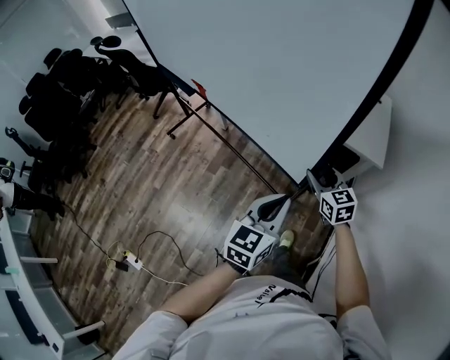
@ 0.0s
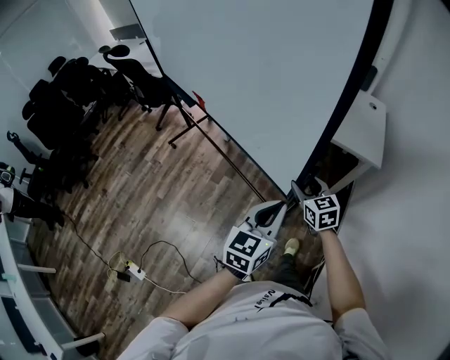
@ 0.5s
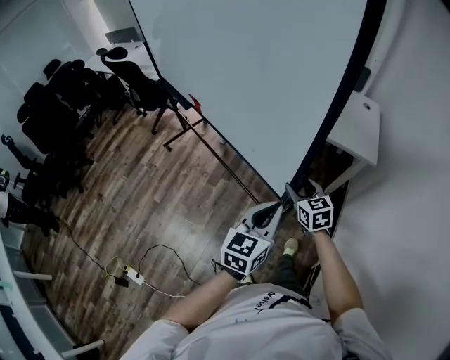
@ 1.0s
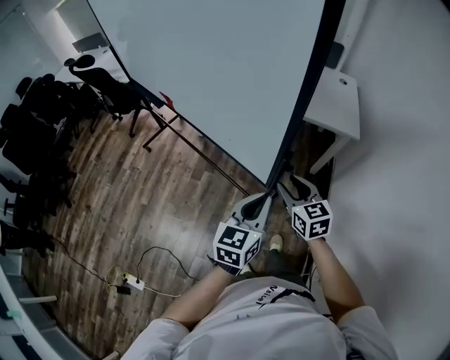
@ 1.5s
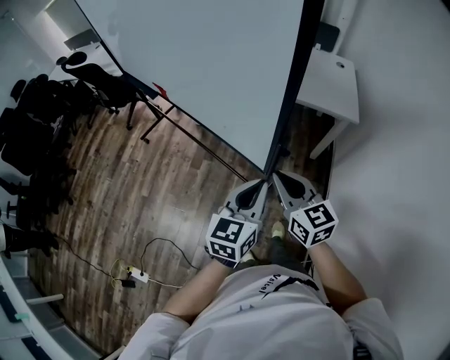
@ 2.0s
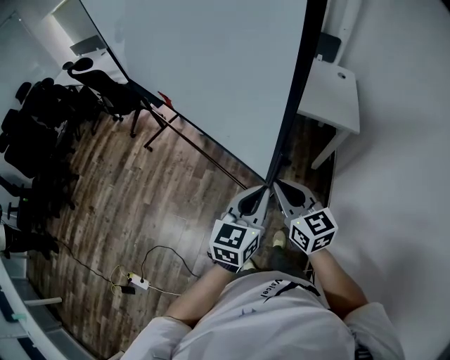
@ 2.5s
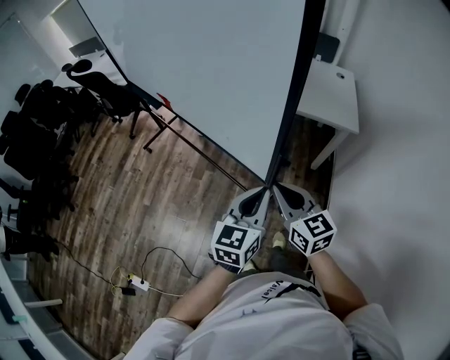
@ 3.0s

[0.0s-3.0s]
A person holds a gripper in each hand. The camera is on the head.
0.0s to 1.5s: The right gripper travels backward and to the left by roughly 20 cm. Meanwhile the left gripper is displaced backward and to the left by roughly 10 cm.
1.5s to 3.0s: The right gripper moves upward, some 5 cm, and closes up.

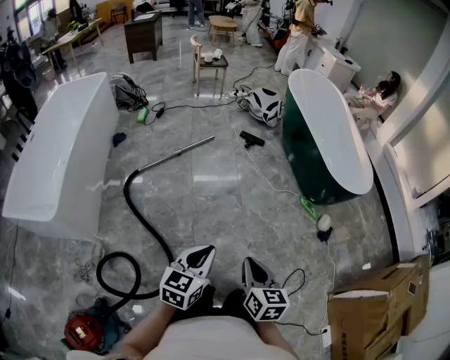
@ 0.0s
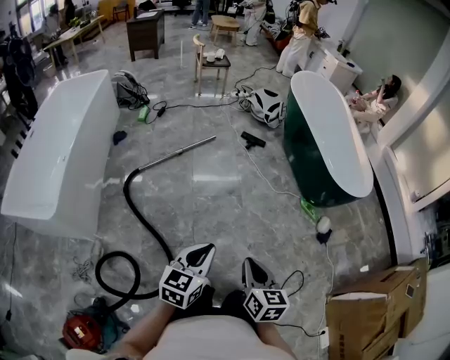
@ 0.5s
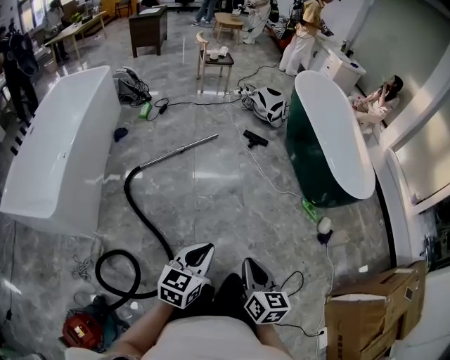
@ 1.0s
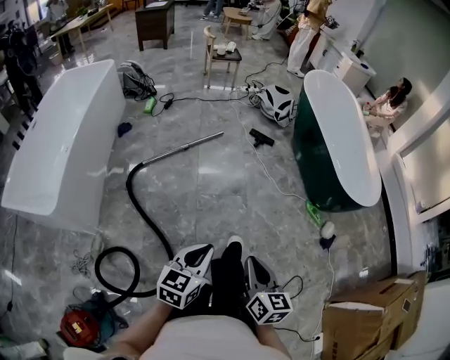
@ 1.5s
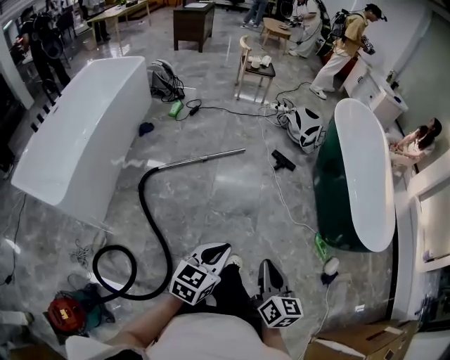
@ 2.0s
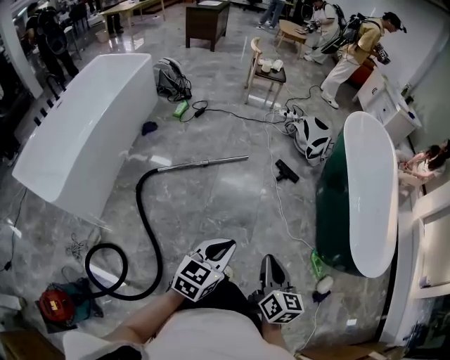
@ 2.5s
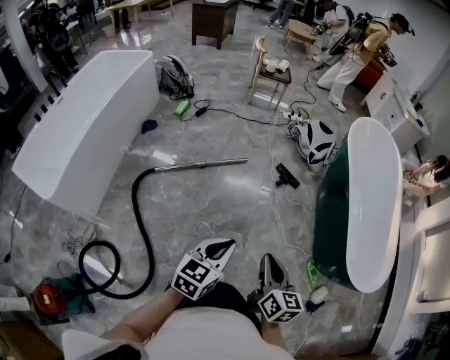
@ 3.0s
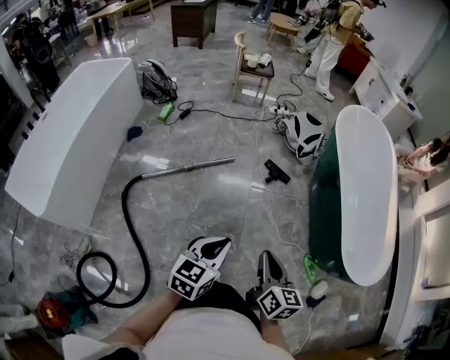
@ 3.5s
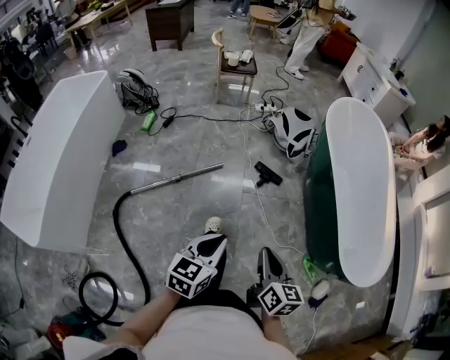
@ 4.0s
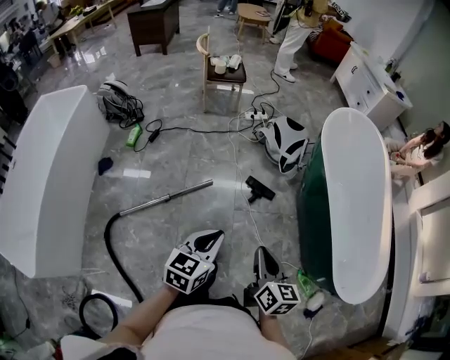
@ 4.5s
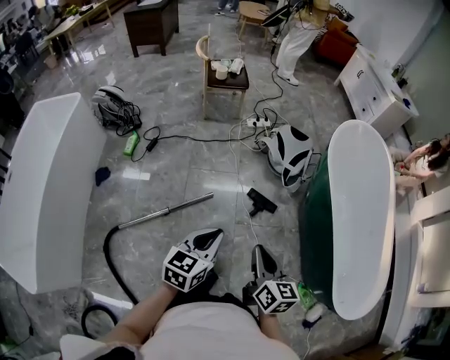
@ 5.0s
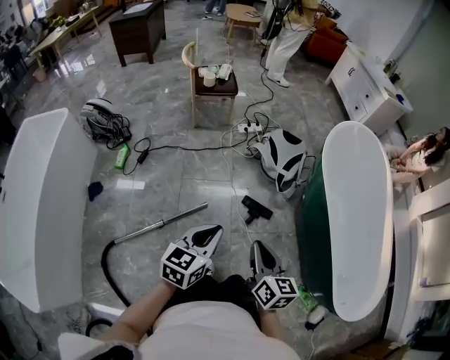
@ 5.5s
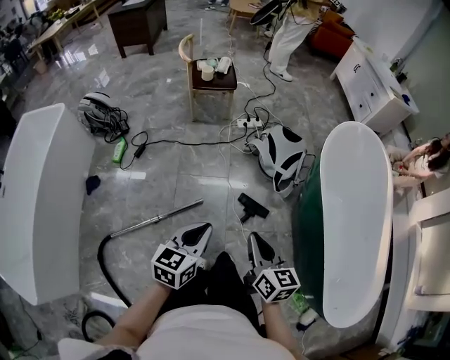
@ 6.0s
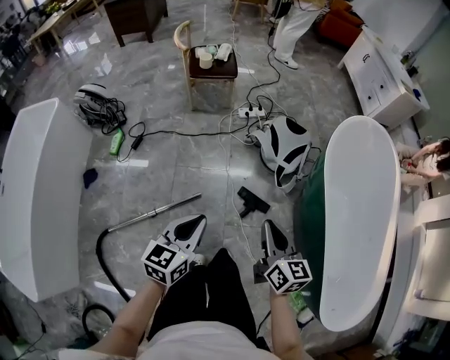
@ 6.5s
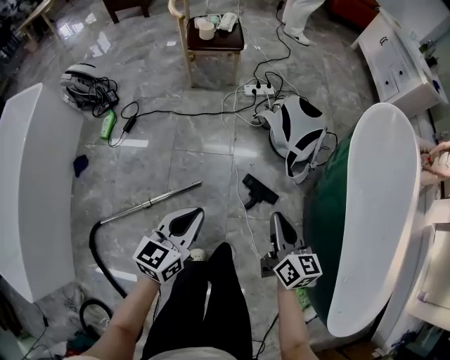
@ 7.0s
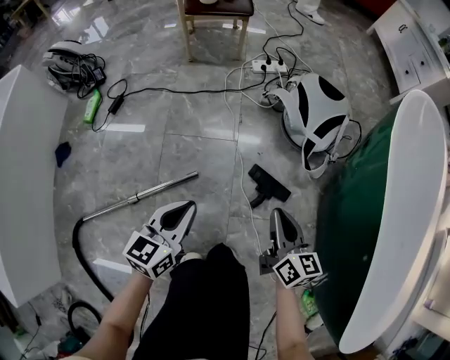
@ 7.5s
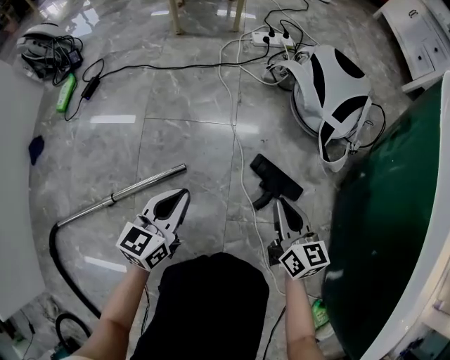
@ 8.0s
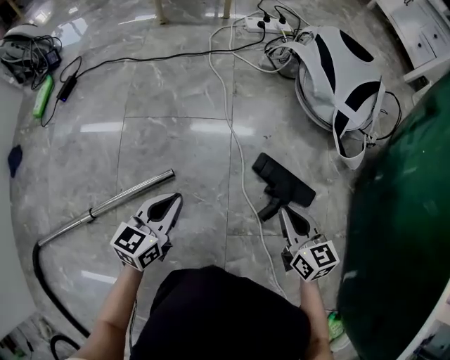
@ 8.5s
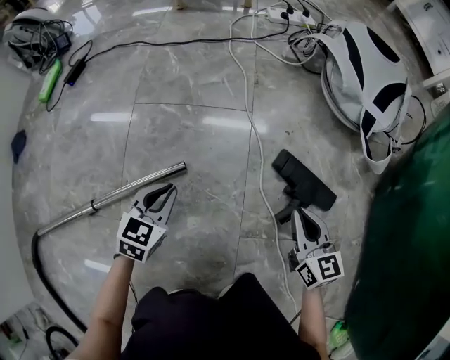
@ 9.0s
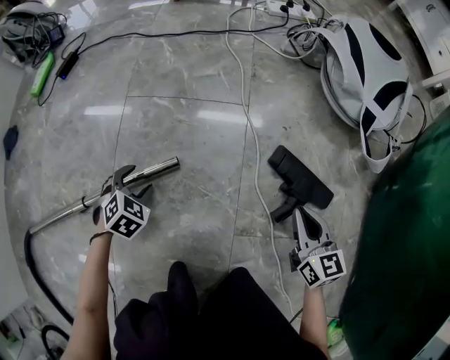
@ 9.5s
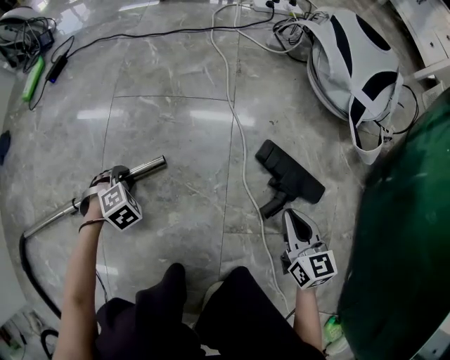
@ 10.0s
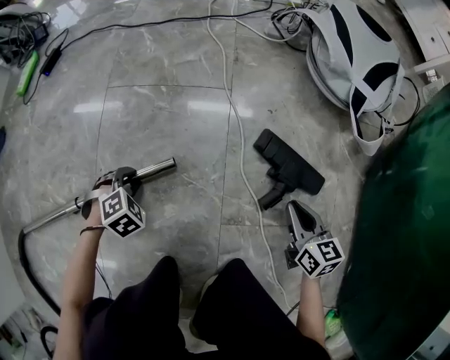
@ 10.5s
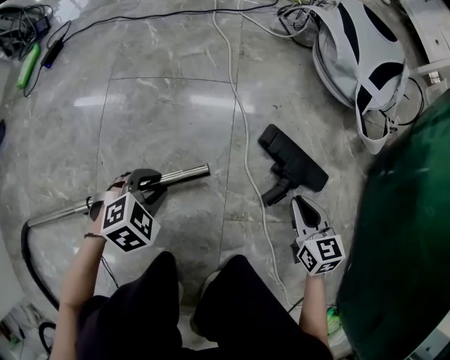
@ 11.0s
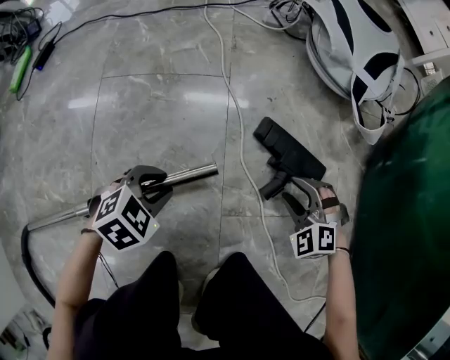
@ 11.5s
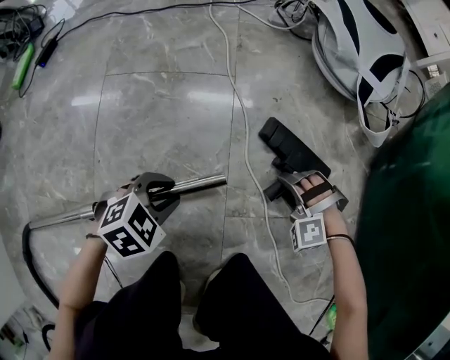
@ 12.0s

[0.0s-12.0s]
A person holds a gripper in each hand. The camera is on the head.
0.0s to 2.0s: The grippers both shift forward by approximately 20 cm.
2.0s to 4.0s: The two grippers go approximately 35 cm forward.
4.0s to 6.0s: The pair of grippers is taken forward, about 40 cm.
6.0s to 8.0s: The two grippers go about 50 cm downward.
8.0s to 10.0s: The right gripper is displaced downward by approximately 20 cm, while the left gripper goes roughly 35 cm downward, tips its fingers downward by about 60 degrees, and opens up.
10.0s to 12.0s: The right gripper moves downward, approximately 10 cm, rolls counterclockwise, seen from behind, by approximately 100 degrees, and opens its fingers, while the left gripper ends up approximately 20 cm from where it was, and swivels about 40 degrees.

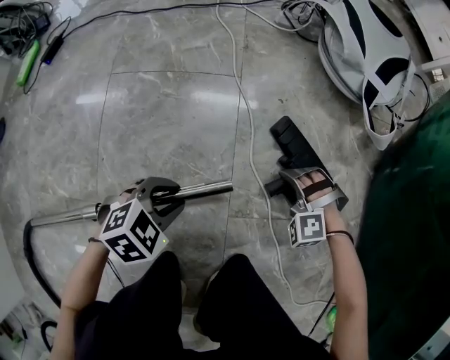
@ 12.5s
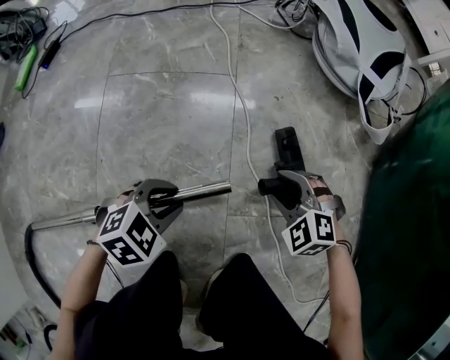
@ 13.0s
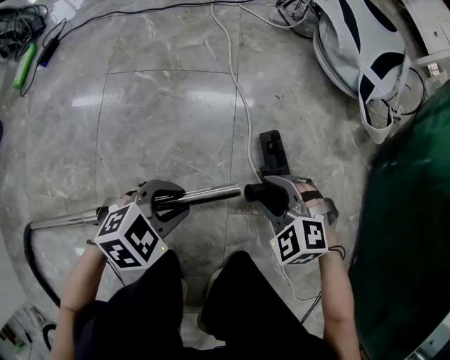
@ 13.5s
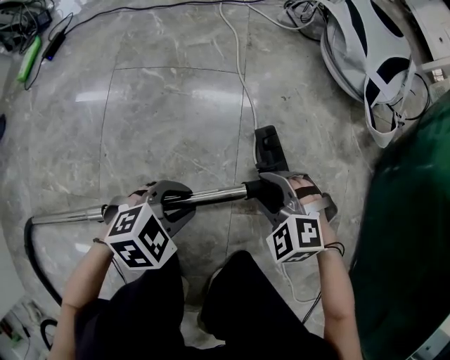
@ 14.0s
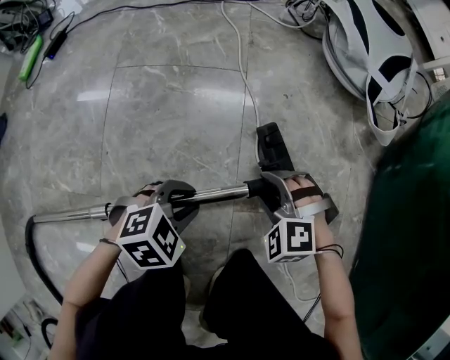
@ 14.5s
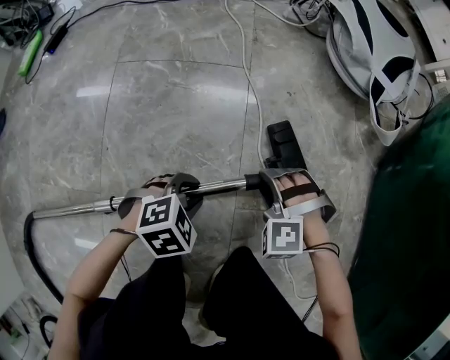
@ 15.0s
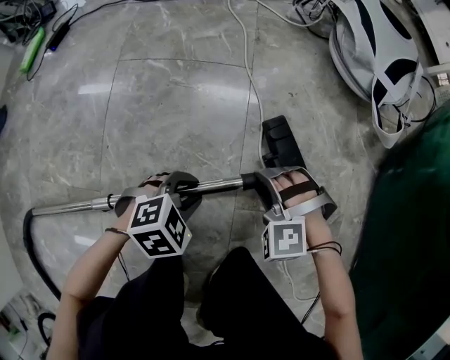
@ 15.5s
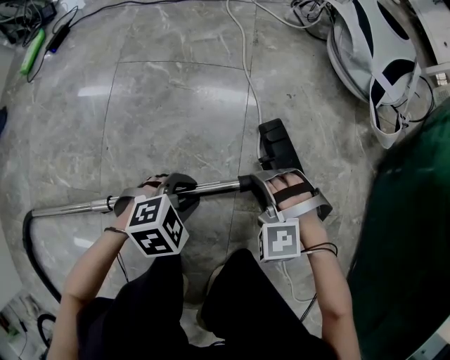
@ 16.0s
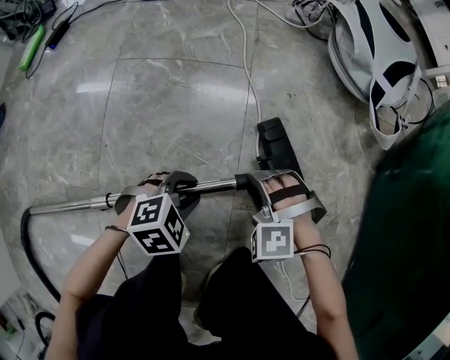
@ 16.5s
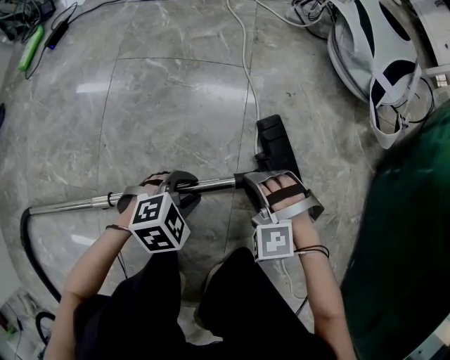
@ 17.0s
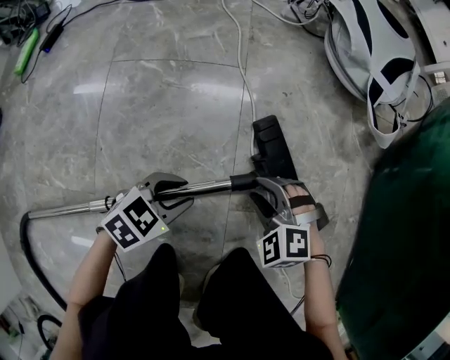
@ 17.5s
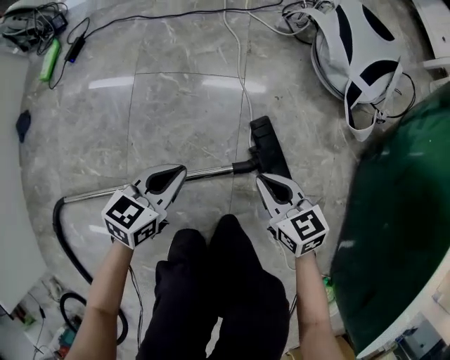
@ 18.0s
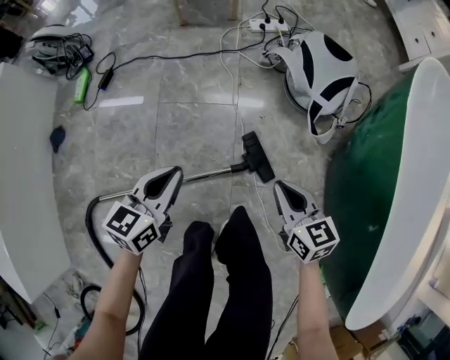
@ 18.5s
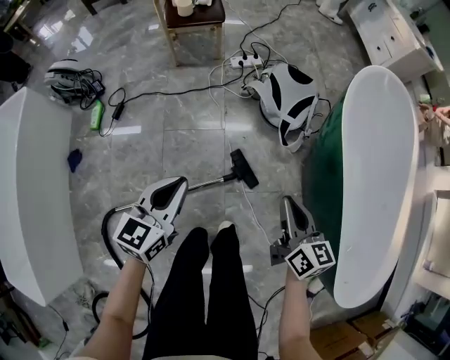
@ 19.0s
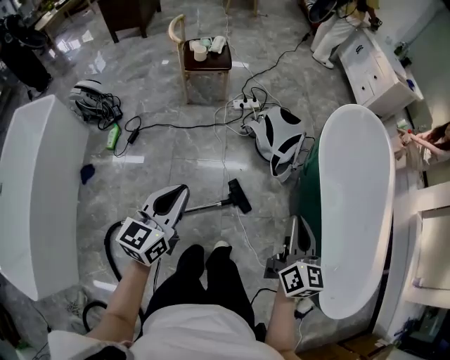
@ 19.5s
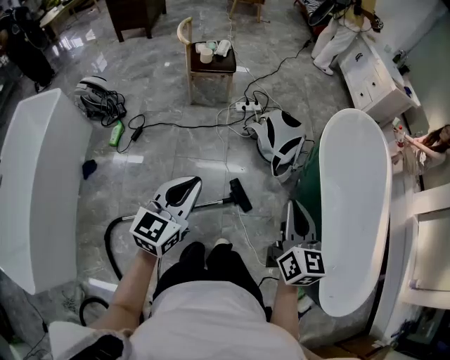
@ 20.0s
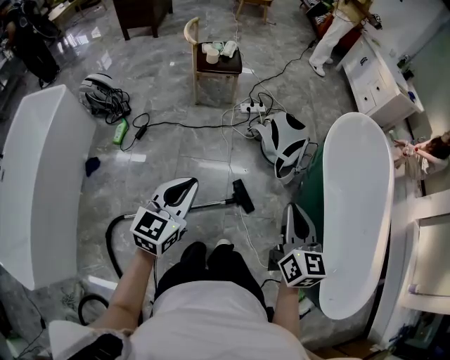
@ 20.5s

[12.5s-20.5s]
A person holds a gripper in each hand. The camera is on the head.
12.5s to 14.5s: The right gripper is displaced to the left and upward by some 10 cm.
14.5s to 16.5s: There are only small adjustments of the grippers.
16.5s to 18.5s: Both grippers move upward, about 40 cm. The right gripper rolls clockwise, seen from behind, by roughly 90 degrees, and closes its fingers. The left gripper tilts its fingers some 40 degrees upward, and closes its fingers.
18.5s to 20.5s: The grippers both shift upward by some 40 cm. The left gripper rotates roughly 20 degrees, while the right gripper swivels about 30 degrees.

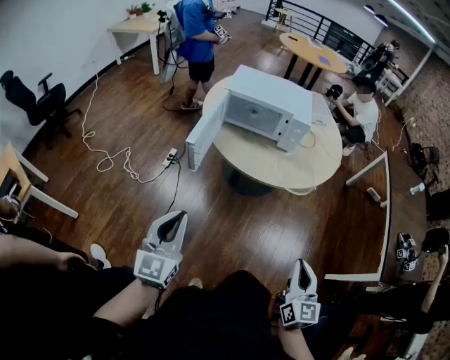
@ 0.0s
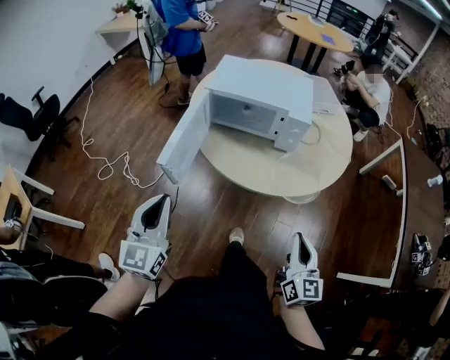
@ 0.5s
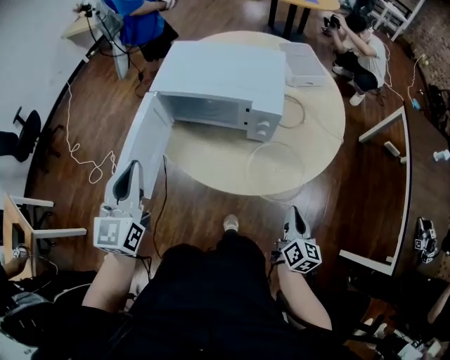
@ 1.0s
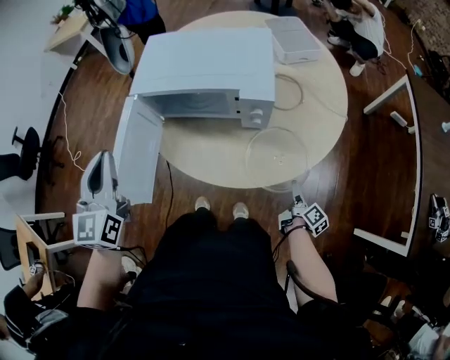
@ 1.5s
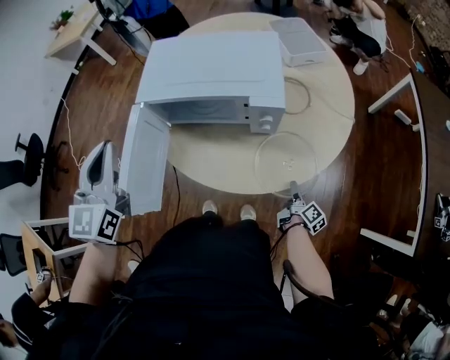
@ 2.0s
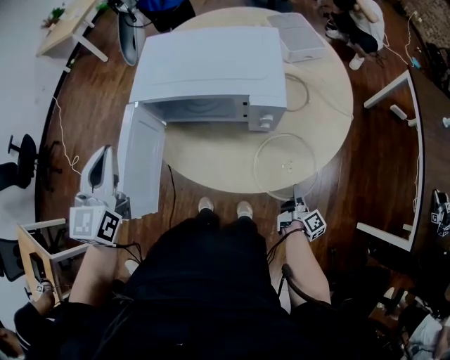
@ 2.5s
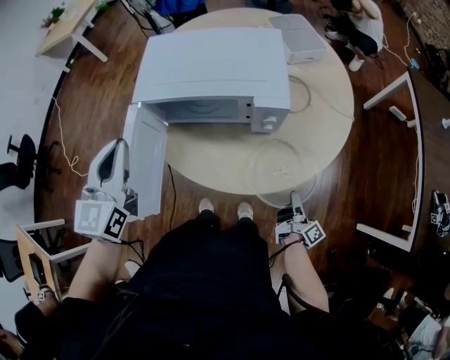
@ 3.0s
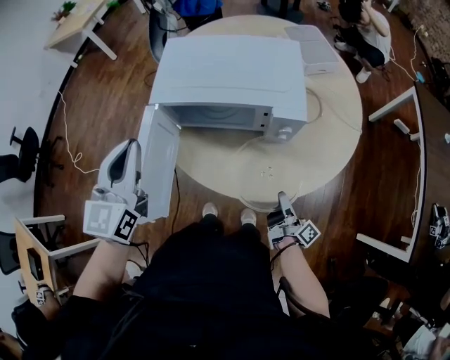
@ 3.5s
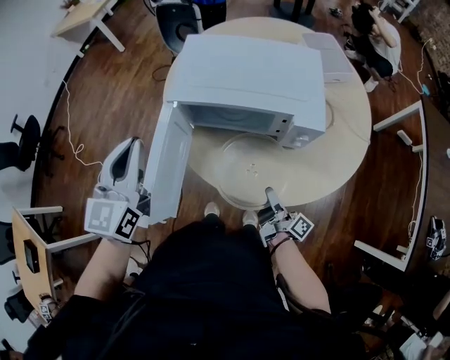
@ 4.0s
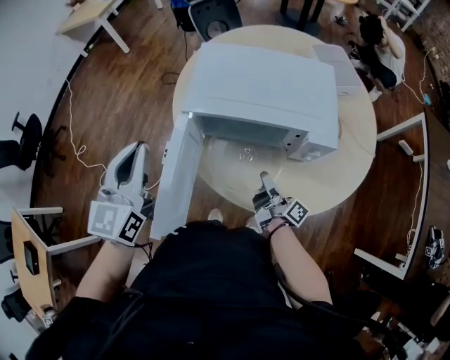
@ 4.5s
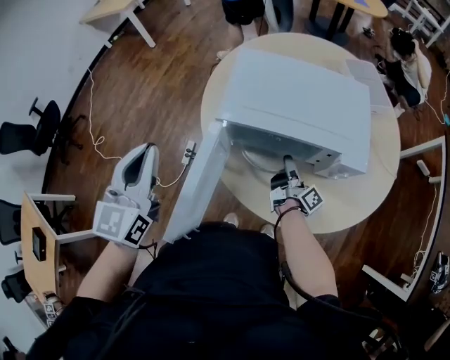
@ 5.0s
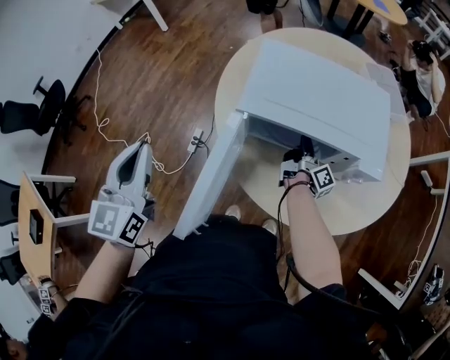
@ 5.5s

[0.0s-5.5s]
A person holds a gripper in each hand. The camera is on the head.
0.0s to 2.0s: The right gripper goes approximately 50 cm forward and downward, rolls clockwise, seen from behind, by about 70 degrees, and opens its fingers; the left gripper moves forward, roughly 35 cm.
2.0s to 3.5s: The right gripper is displaced to the left and upward by approximately 15 cm, rotates about 30 degrees, and closes.
3.5s to 5.5s: The right gripper heads forward and to the left, covering about 30 cm, while the left gripper heads to the left, covering about 15 cm.
